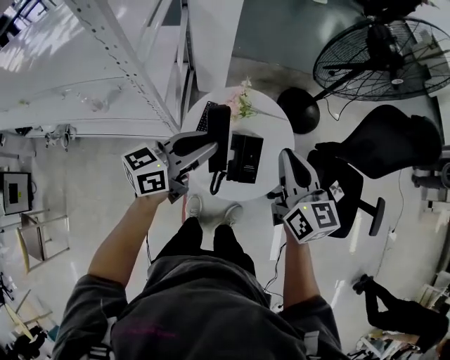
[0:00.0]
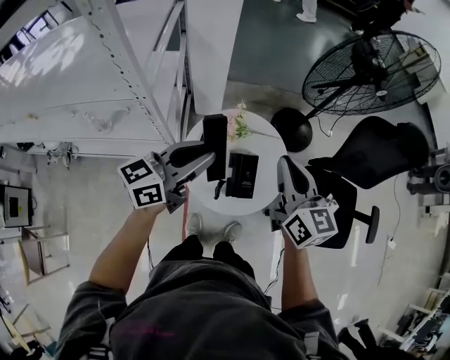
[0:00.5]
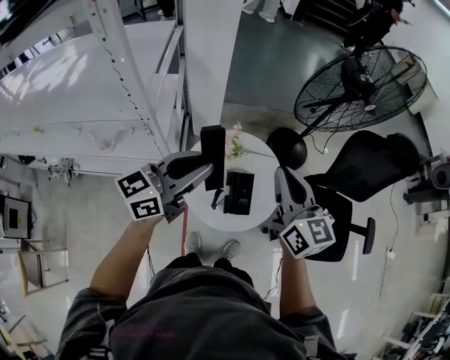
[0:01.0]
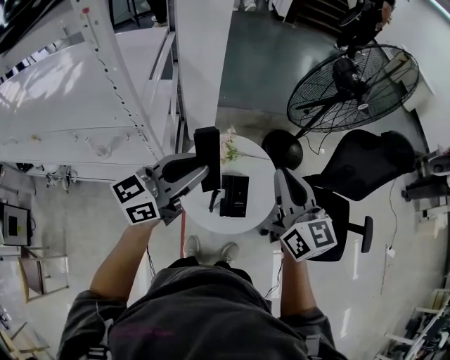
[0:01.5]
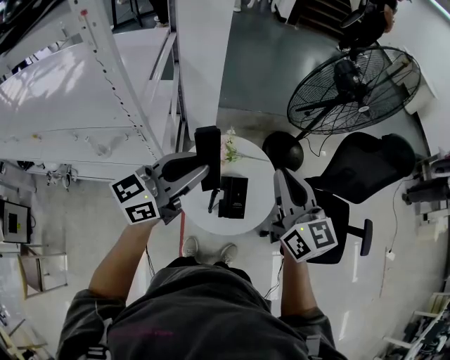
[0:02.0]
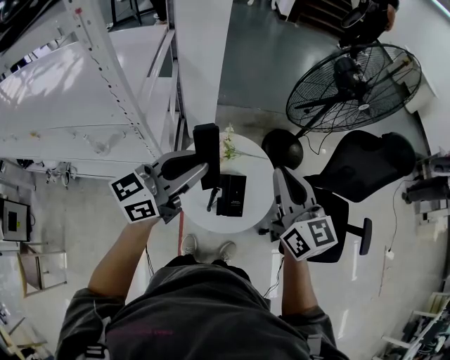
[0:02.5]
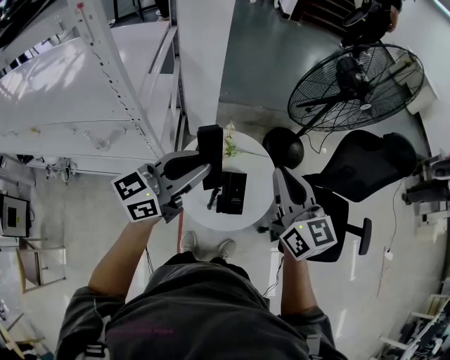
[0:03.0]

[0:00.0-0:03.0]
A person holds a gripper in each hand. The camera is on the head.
0:00.0 to 0:01.5: The two grippers go approximately 15 cm upward.
0:01.5 to 0:03.0: The grippers move only a little.

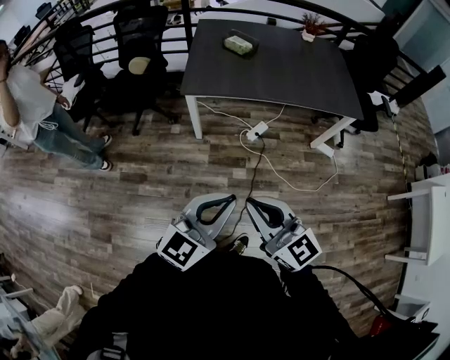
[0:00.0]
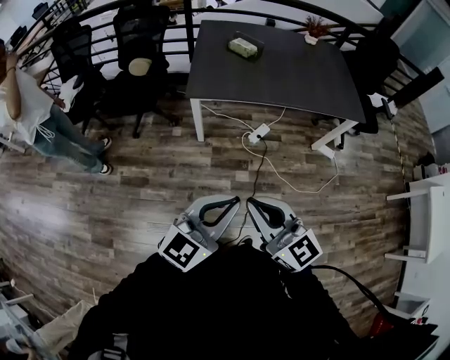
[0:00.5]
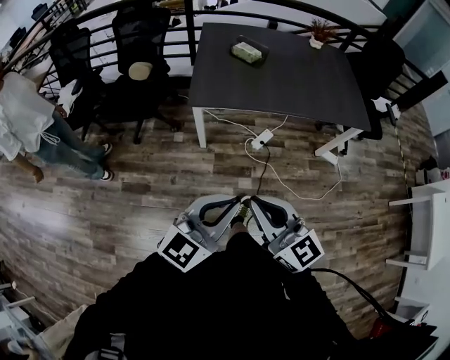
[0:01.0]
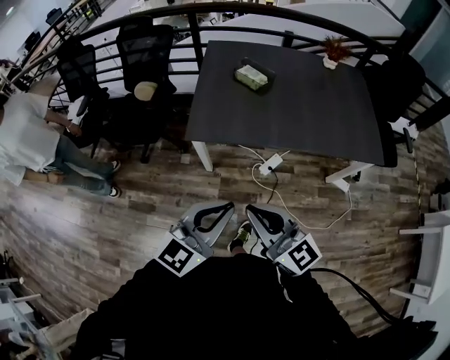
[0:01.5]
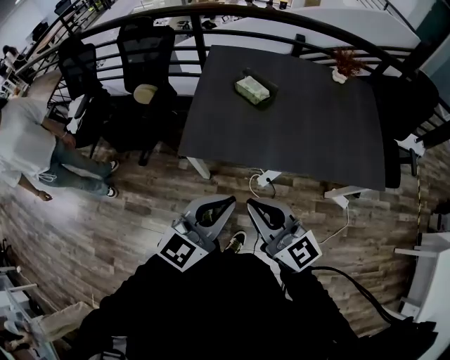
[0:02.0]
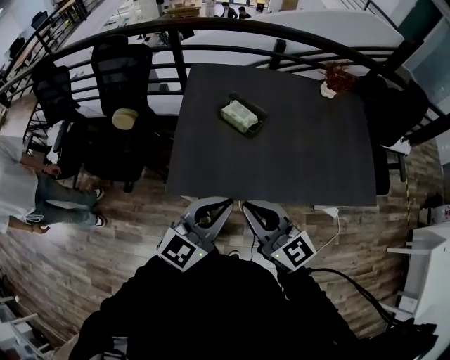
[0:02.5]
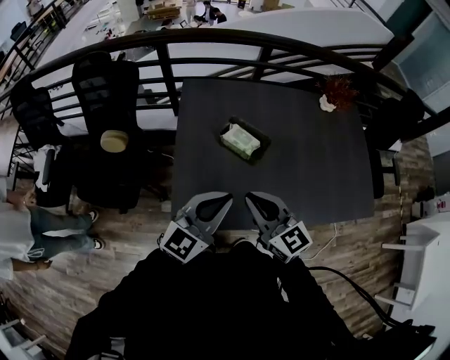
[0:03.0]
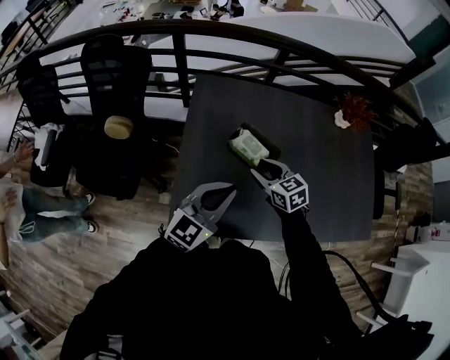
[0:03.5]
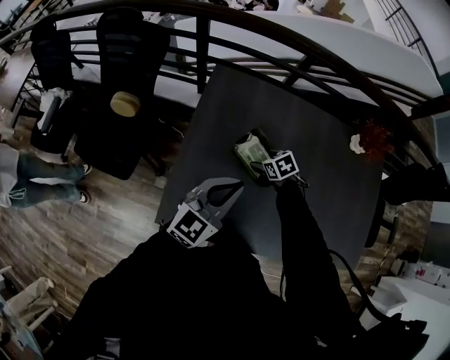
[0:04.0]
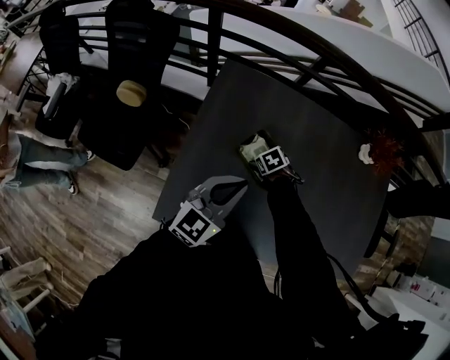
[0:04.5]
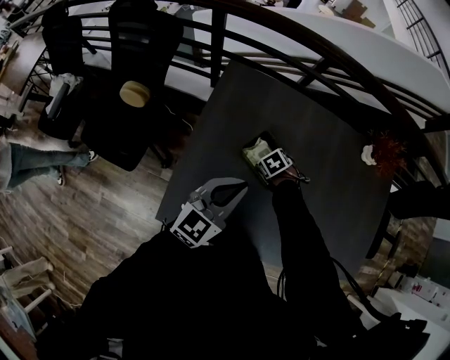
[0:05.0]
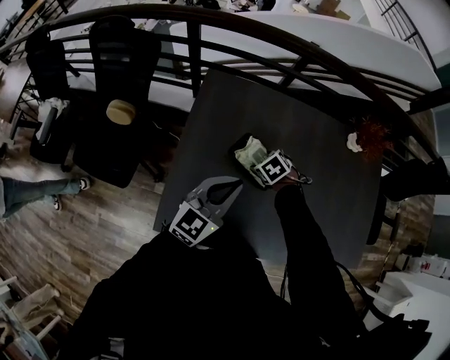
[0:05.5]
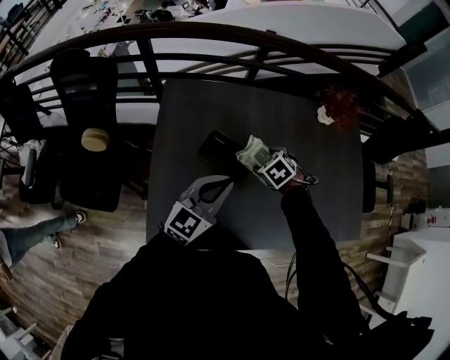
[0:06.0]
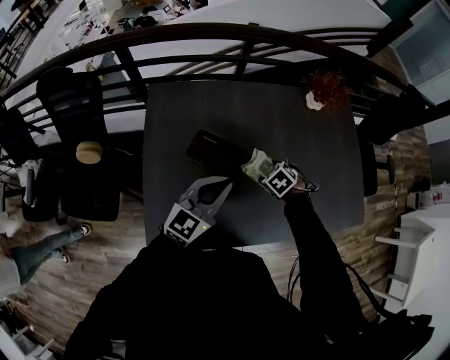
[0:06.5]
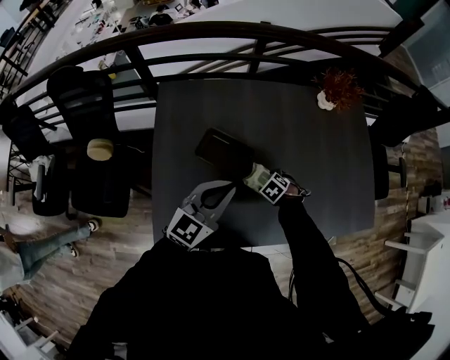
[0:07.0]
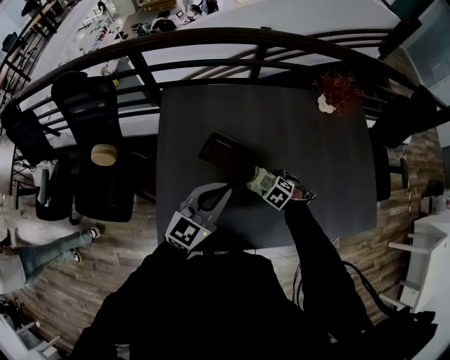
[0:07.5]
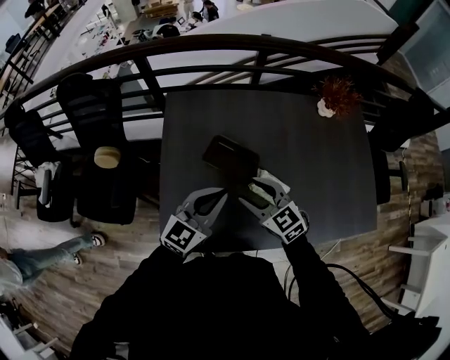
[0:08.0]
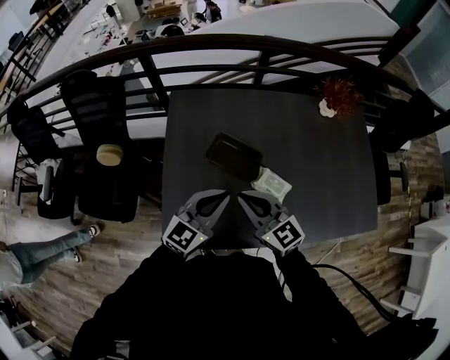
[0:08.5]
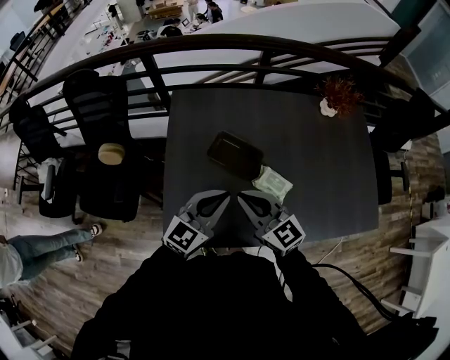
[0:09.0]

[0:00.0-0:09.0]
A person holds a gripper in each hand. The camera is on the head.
0:00.0 to 0:02.0: Both grippers travel together forward, about 40 cm.
0:02.0 to 0:04.5: The pair of grippers is taken some 60 cm. The right gripper tilts its fingers approximately 80 degrees downward, and opens up.
0:04.5 to 0:07.0: The left gripper ends up roughly 10 cm from where it was, while the right gripper reaches about 15 cm upward, then returns.
0:07.0 to 0:09.0: The right gripper is displaced upward by about 30 cm, tilts its fingers some 70 degrees upward, and closes, while the left gripper shifts by about 5 cm.

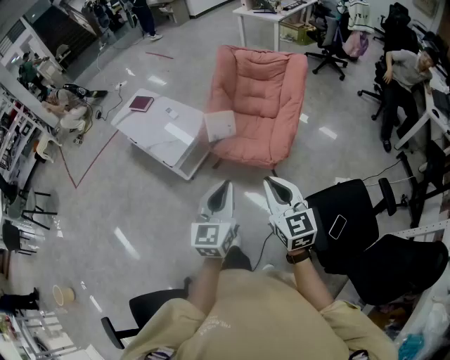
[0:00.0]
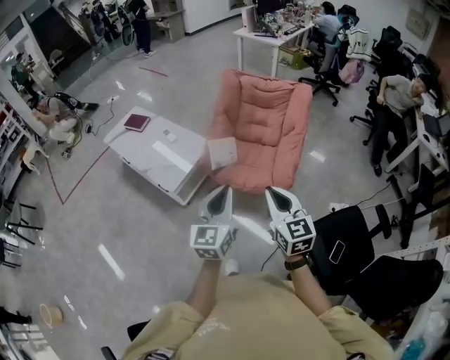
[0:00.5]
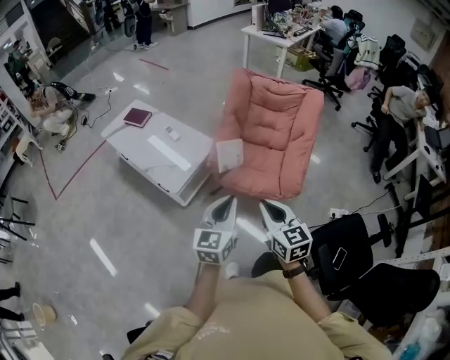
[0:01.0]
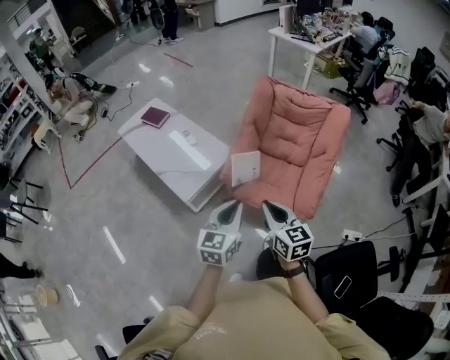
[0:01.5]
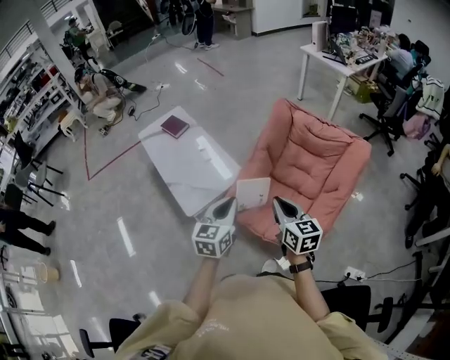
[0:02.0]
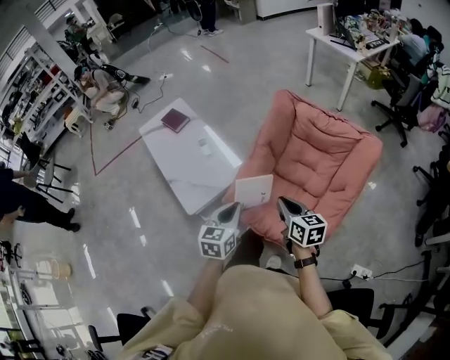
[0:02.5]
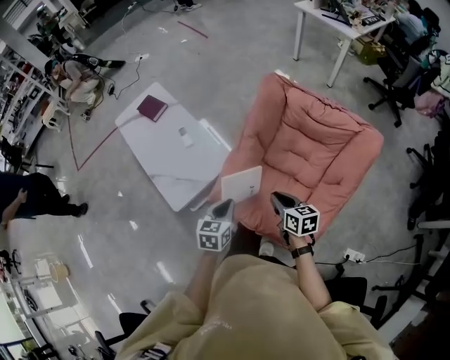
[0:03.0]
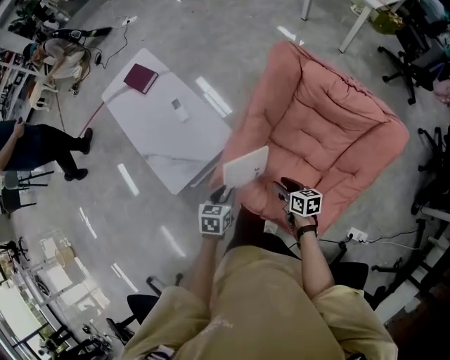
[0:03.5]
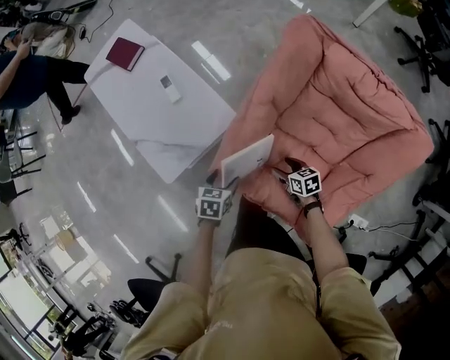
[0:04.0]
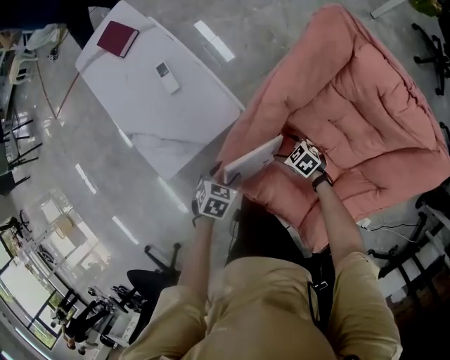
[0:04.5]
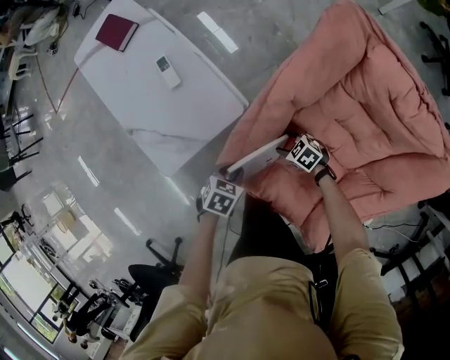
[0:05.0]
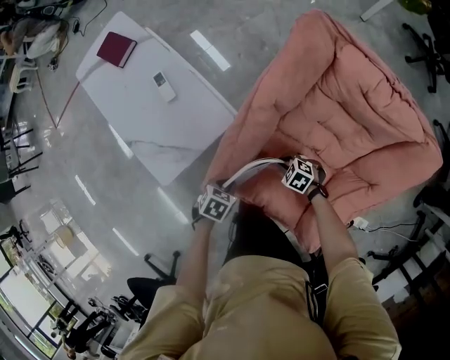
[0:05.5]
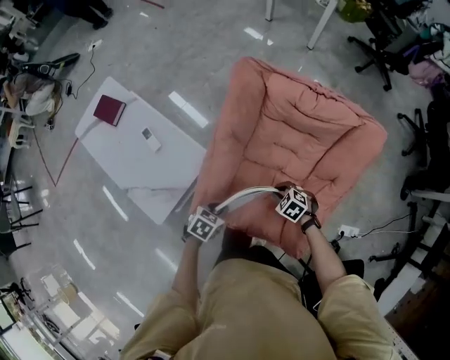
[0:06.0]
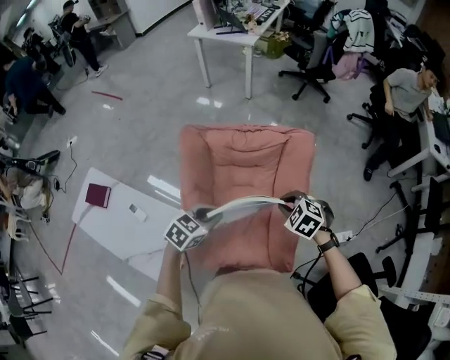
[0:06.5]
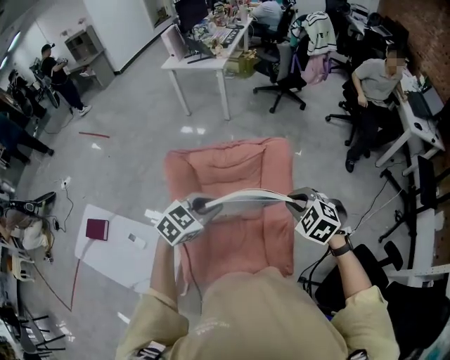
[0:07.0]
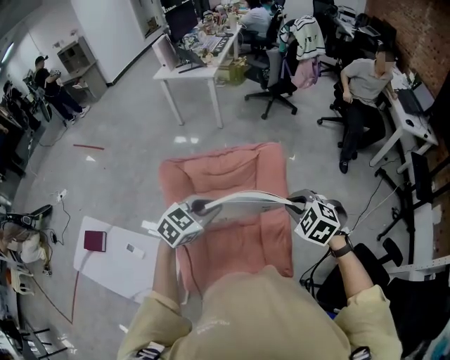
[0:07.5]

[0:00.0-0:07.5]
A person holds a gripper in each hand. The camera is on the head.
0:00.0 to 0:02.0: The pair of grippers is taken forward, approximately 40 cm. The right gripper rotates roughly 20 degrees.
0:02.0 to 0:04.0: Both grippers move downward and forward, approximately 50 cm. The left gripper points its fingers some 50 degrees further downward, and opens. The right gripper tips its fingers downward by approximately 30 degrees, and opens up.
0:04.0 to 0:05.5: Both grippers travel together downward, some 5 cm. The left gripper swivels approximately 20 degrees, and closes; the right gripper rotates around the line of its fingers by about 50 degrees, counterclockwise from behind, and closes.
0:05.5 to 0:07.5: Both grippers travel together upward, some 50 cm. The right gripper changes its angle by about 50 degrees. Meanwhile the left gripper rotates around the line of its fingers by about 60 degrees, clockwise from behind.

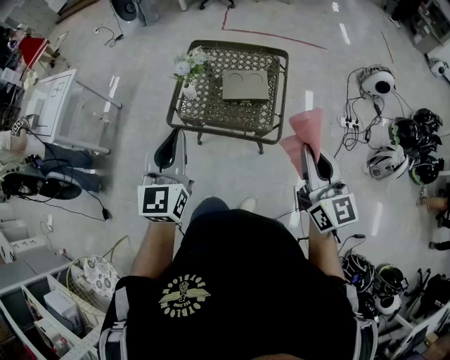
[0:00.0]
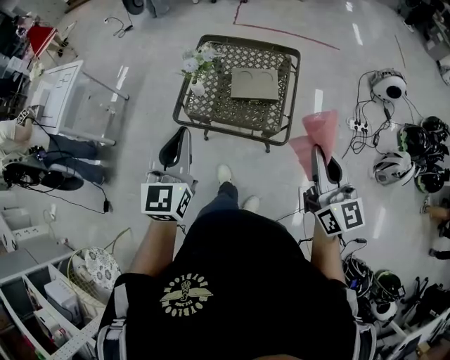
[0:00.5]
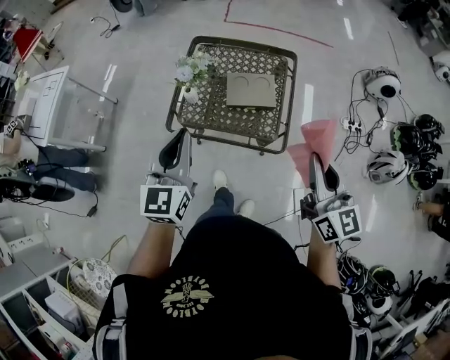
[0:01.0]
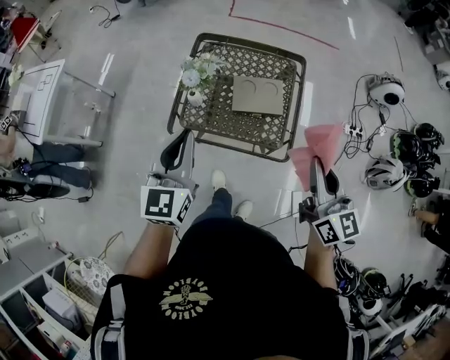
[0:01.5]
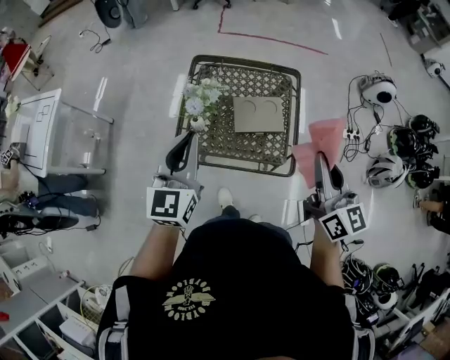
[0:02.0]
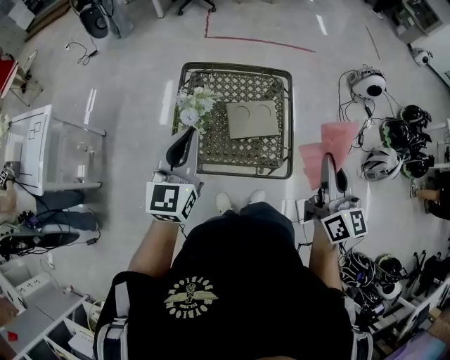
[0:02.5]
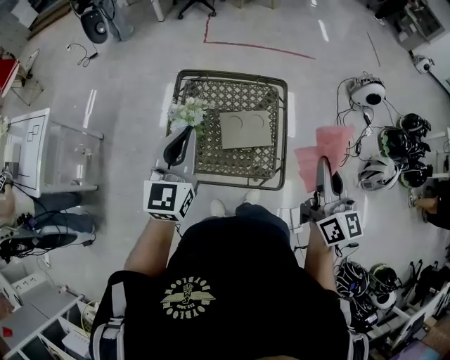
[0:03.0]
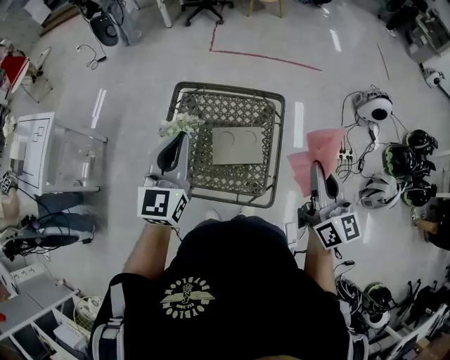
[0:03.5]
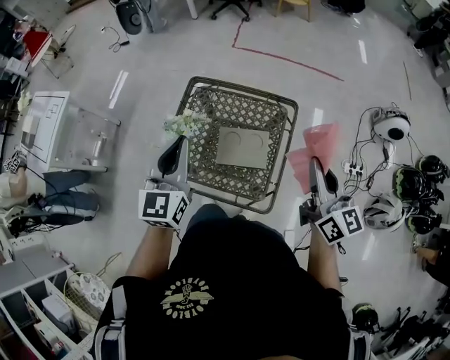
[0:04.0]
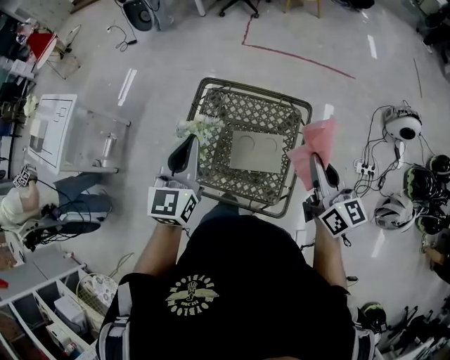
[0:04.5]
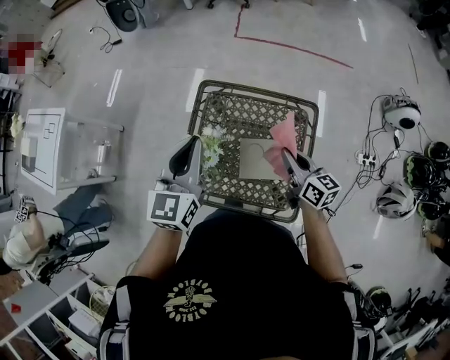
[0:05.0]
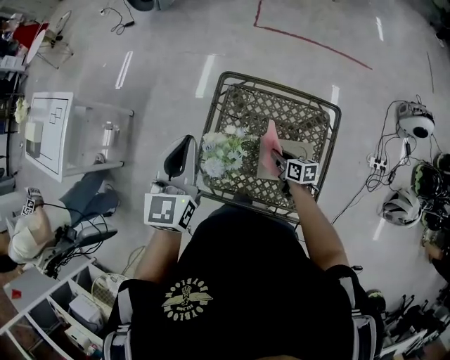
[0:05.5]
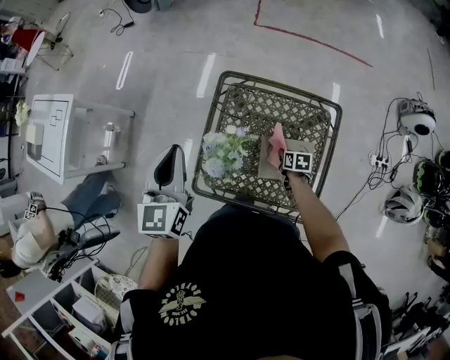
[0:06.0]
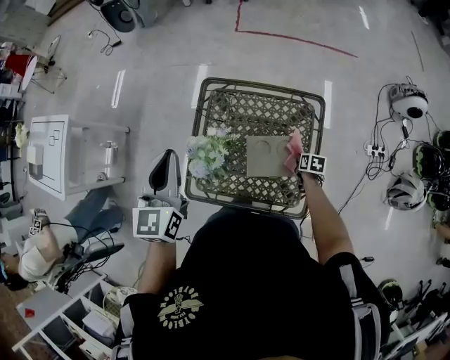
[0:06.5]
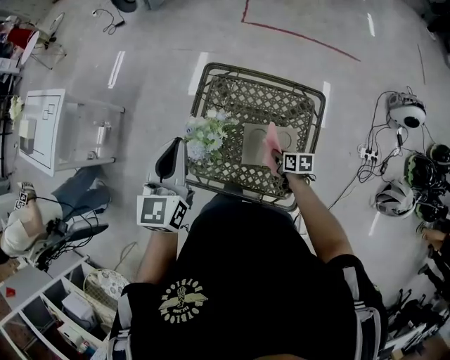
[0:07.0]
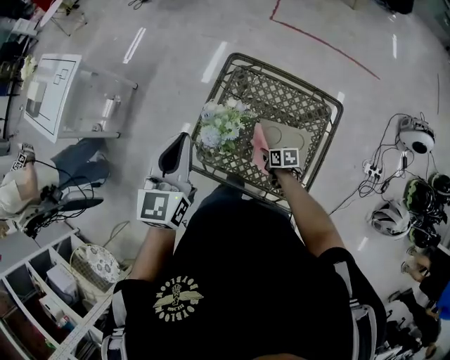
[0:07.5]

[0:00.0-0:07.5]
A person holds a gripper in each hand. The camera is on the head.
0:00.0 to 0:02.0: Both grippers move forward, approximately 20 cm.
0:02.0 to 0:04.0: Both grippers move forward and to the right, roughly 20 cm.
0:04.0 to 0:05.5: The right gripper travels downward, to the left and forward by about 50 cm, and angles its fingers downward, by about 40 degrees; the left gripper travels forward and to the left by about 20 cm.
0:05.5 to 0:07.5: The right gripper heads downward and backward, covering about 10 cm, reaches about 15 cm to the right, then returns, and turns by about 20 degrees; the left gripper moves backward, roughly 10 cm.
